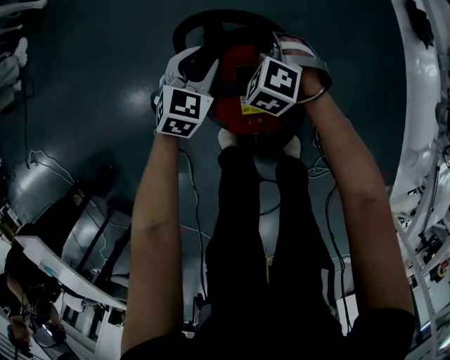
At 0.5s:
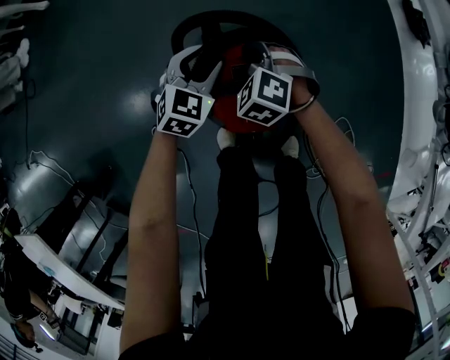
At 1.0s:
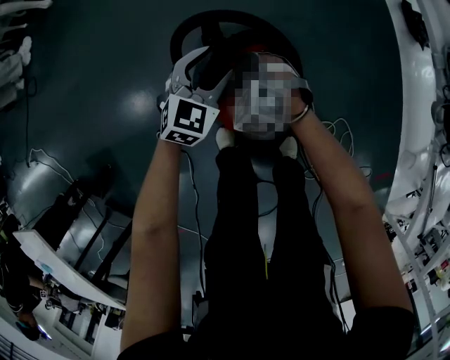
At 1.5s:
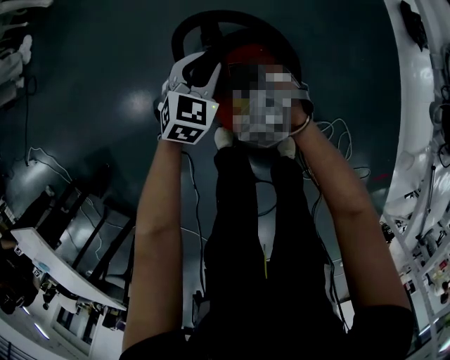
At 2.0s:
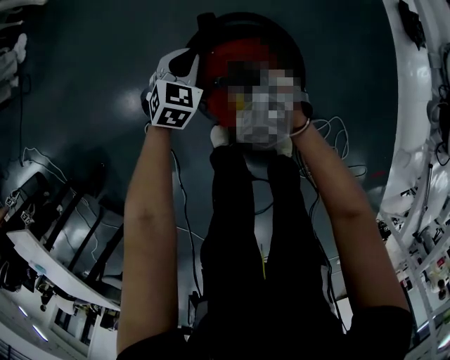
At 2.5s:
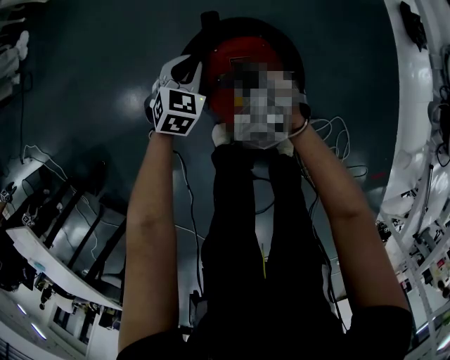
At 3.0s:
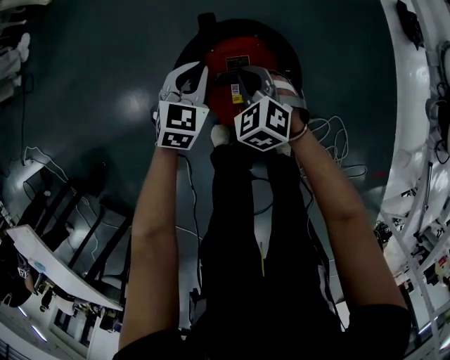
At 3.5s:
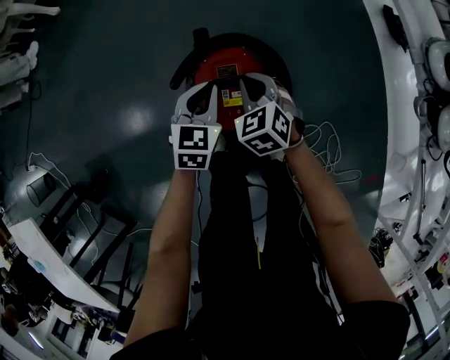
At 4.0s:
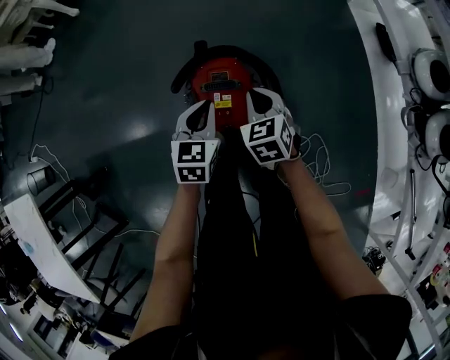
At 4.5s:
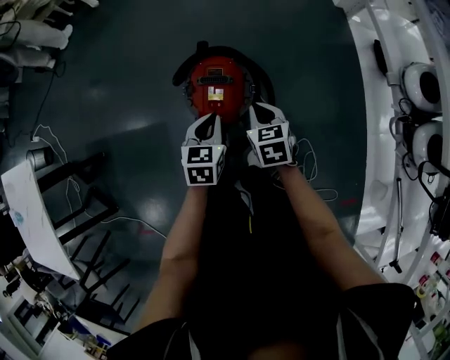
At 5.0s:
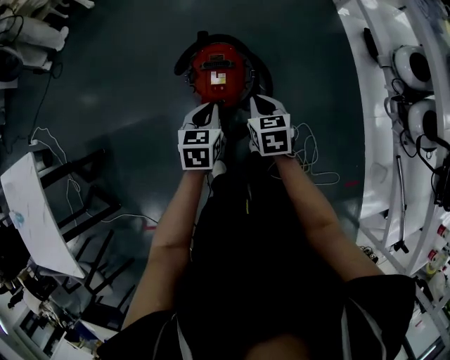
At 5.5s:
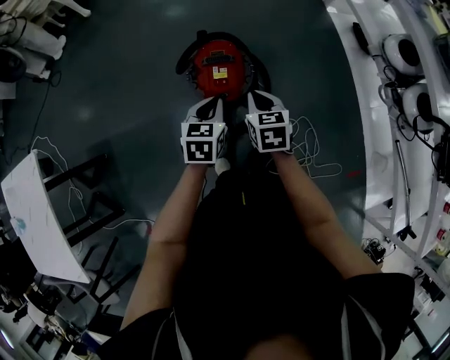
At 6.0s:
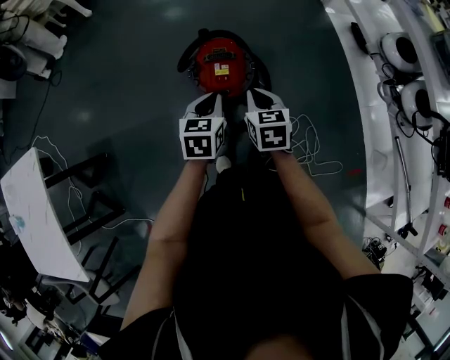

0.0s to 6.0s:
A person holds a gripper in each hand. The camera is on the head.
0.0s to 2.0s: The left gripper closes up; the right gripper goes about 10 cm backward.
2.0s to 4.0s: The right gripper heads upward, to the right and backward, covering approximately 20 cm, and changes its angle by about 30 degrees. The left gripper moves upward, backward and to the right, approximately 25 cm, and rotates some 30 degrees.
4.0s to 6.0s: Both grippers travel together backward and upward, roughly 20 cm. The right gripper swivels some 20 degrees.

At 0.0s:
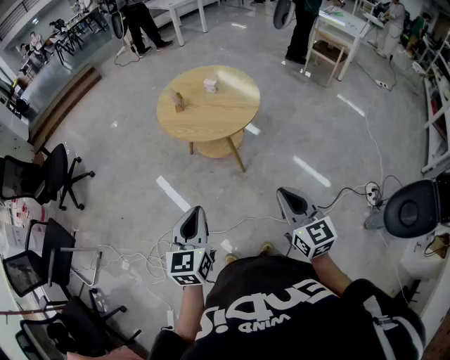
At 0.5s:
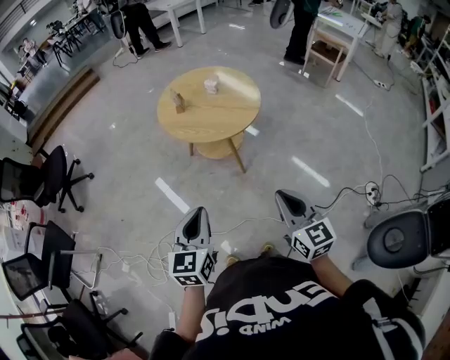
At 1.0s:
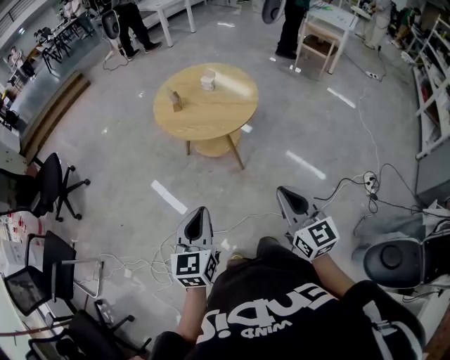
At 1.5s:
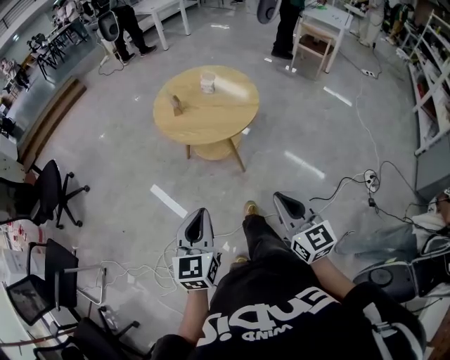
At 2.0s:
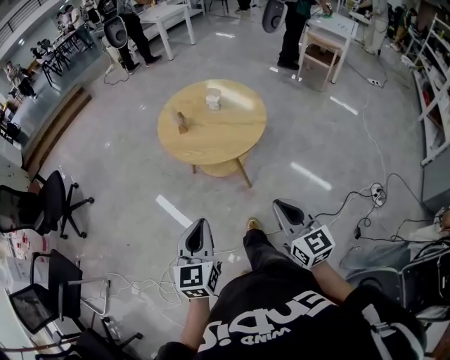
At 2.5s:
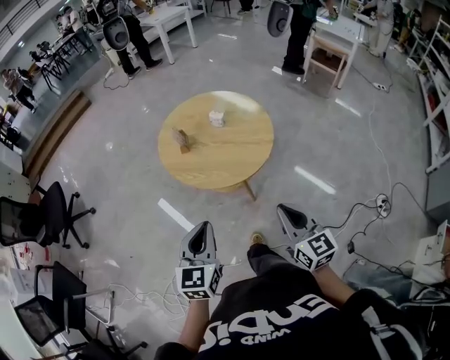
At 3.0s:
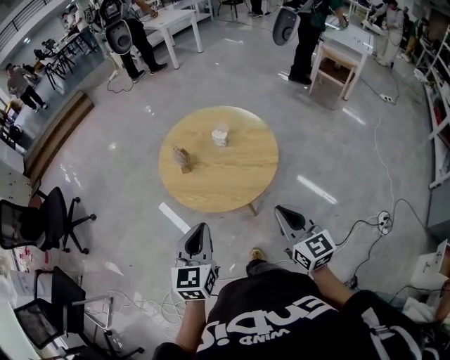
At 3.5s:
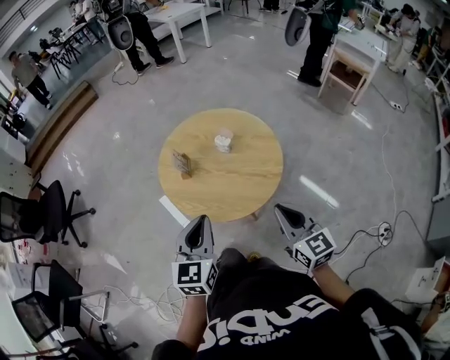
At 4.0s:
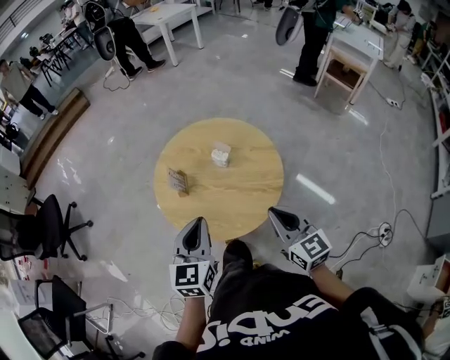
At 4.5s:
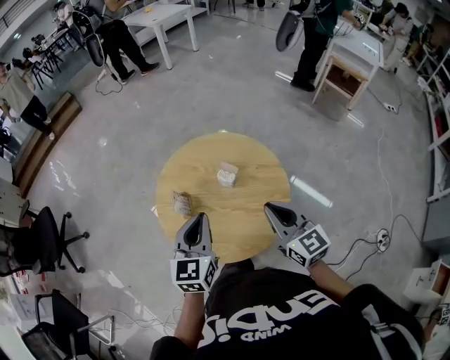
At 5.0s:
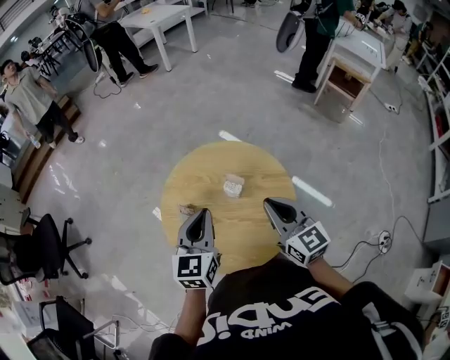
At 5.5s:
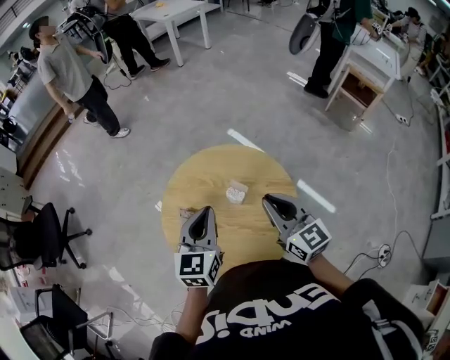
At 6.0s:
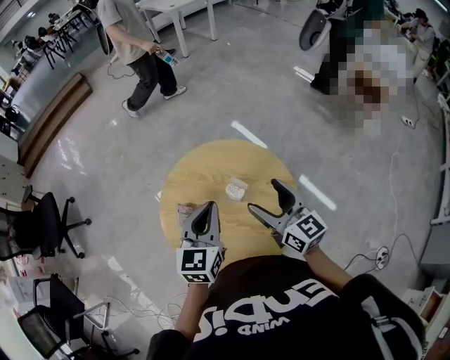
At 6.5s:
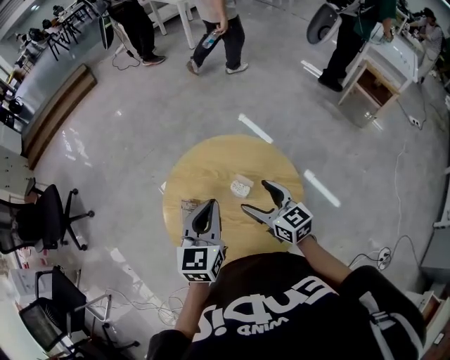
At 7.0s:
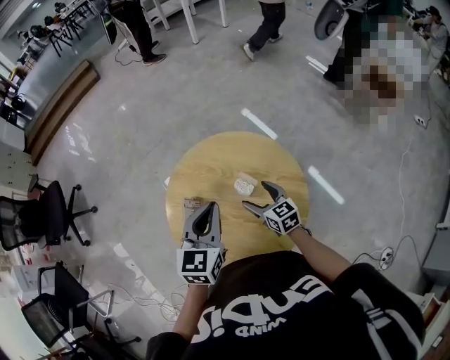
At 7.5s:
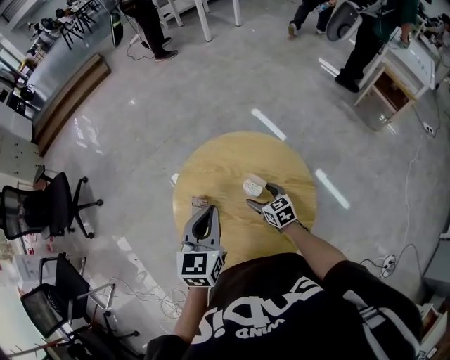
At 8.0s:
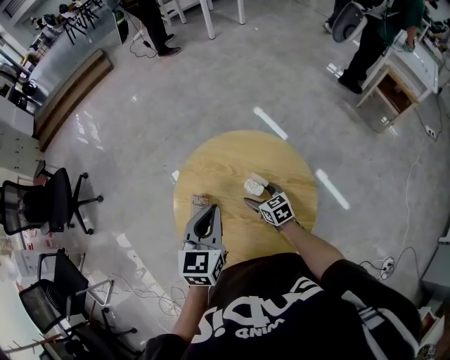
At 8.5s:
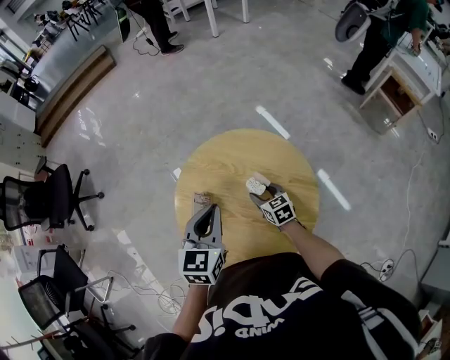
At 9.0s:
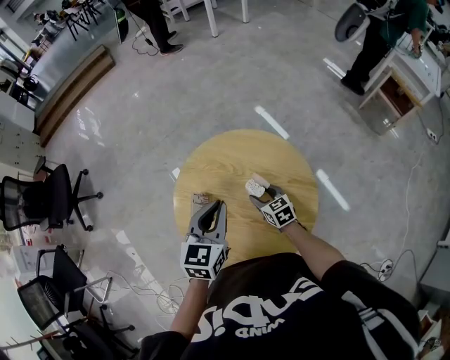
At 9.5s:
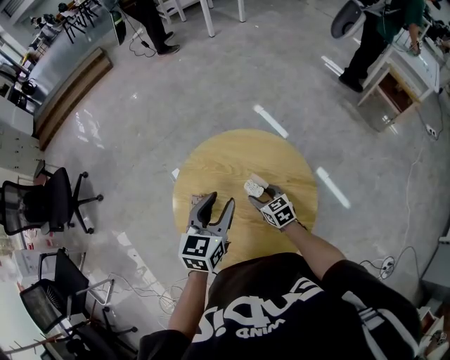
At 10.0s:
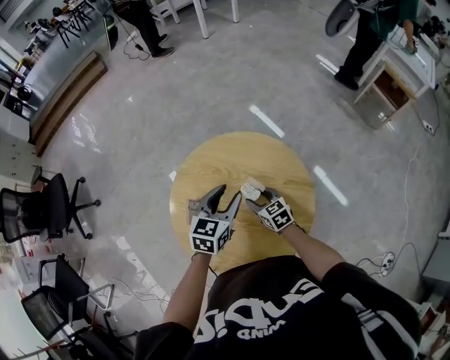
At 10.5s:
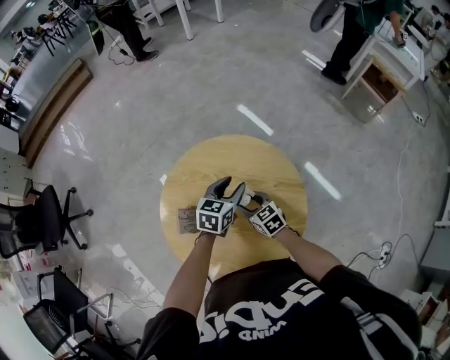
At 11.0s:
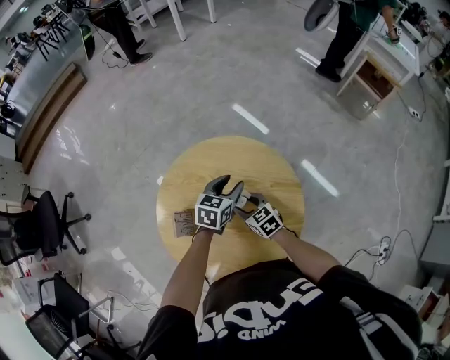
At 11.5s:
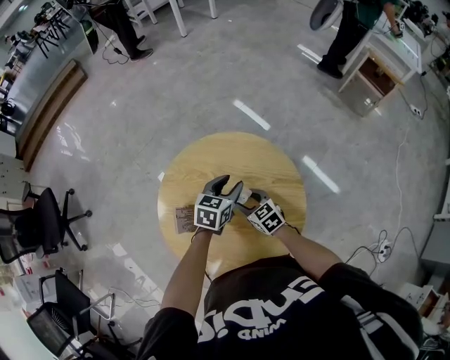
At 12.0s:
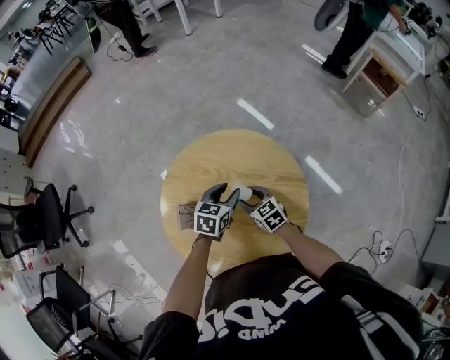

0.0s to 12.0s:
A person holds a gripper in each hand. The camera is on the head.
0.0s to 2.0s: The right gripper shifts roughly 10 cm to the left and forward. The left gripper shifts some 10 cm forward and to the left.
2.0s to 4.0s: Both grippers move forward, approximately 35 cm.
4.0s to 6.0s: Both grippers move forward, roughly 25 cm. The right gripper opens its fingers.
6.0s to 8.0s: The right gripper heads downward, covering some 25 cm, and points its fingers some 30 degrees further downward.
8.0s to 10.0s: The right gripper closes up, while the left gripper shifts approximately 10 cm downward, to the right and forward, and opens.
10.0s to 12.0s: The left gripper heads downward, covering about 10 cm.

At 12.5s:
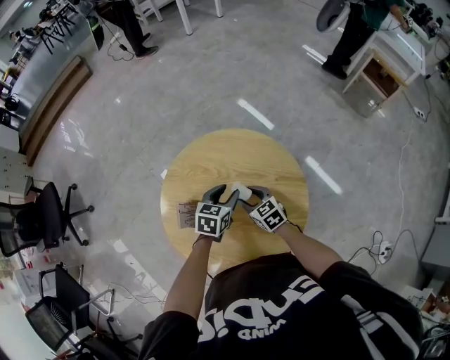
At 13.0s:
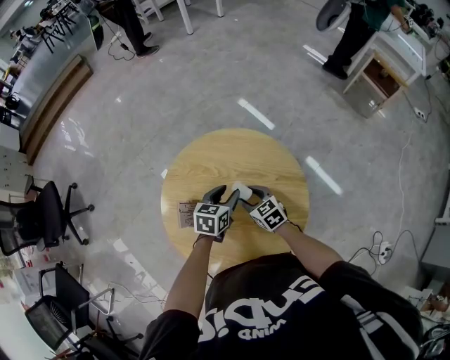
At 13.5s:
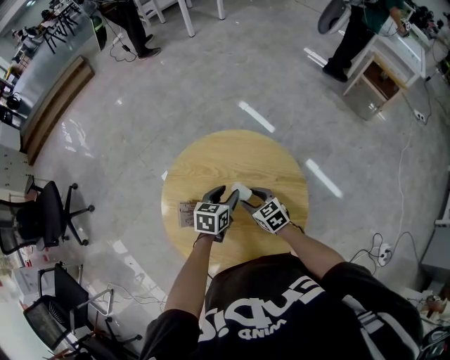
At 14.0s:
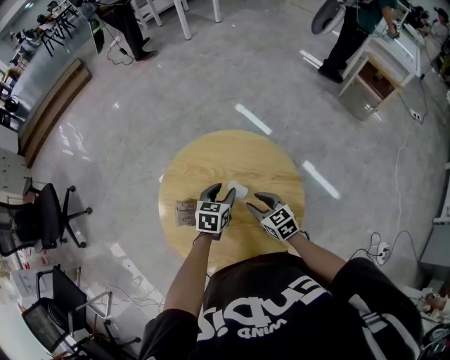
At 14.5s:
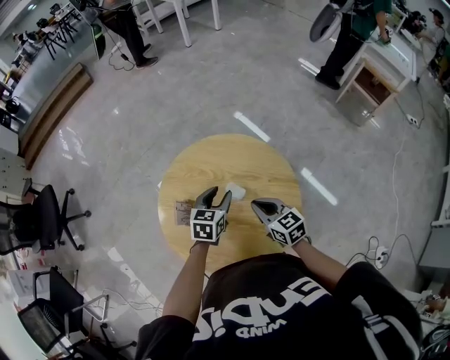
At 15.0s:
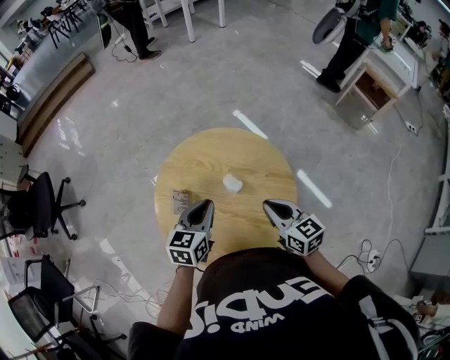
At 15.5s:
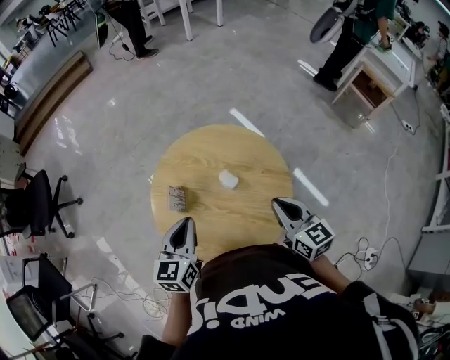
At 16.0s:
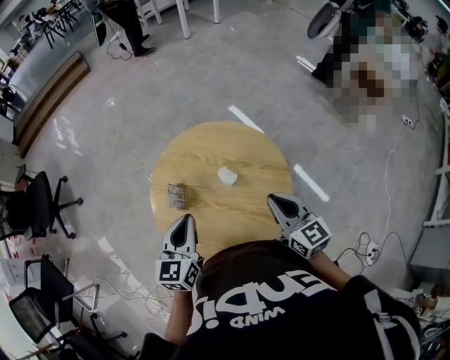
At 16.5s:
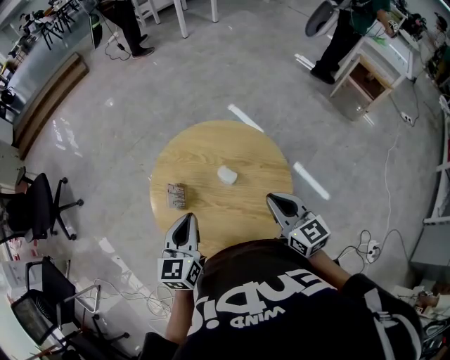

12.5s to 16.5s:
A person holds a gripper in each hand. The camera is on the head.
12.5s to 14.5s: The right gripper travels upward and backward by about 10 cm, and closes its fingers.
14.5s to 16.5s: The left gripper shifts approximately 20 cm backward, upward and to the left, swivels about 20 degrees, and closes; the right gripper heads upward and backward, covering roughly 15 cm.

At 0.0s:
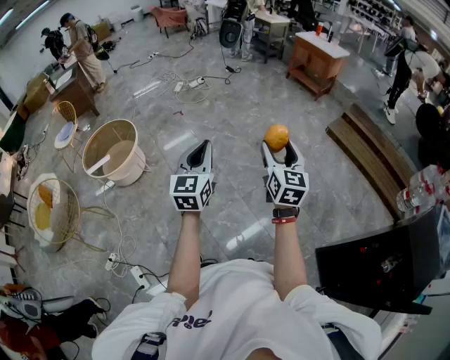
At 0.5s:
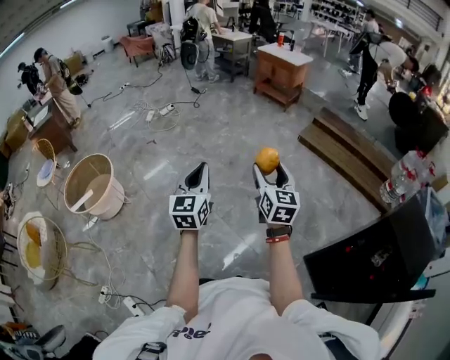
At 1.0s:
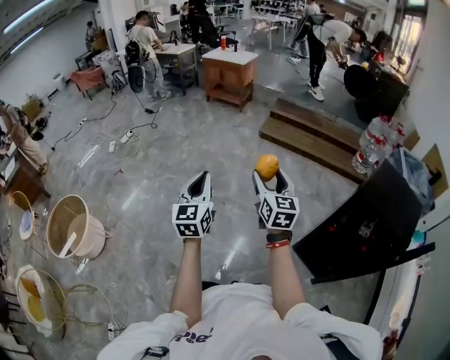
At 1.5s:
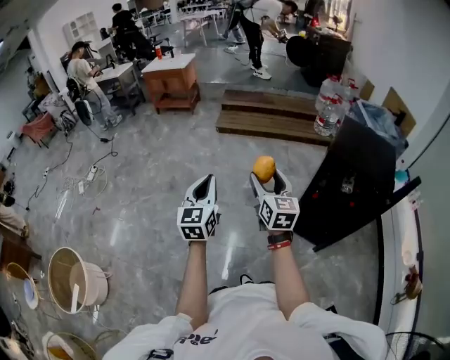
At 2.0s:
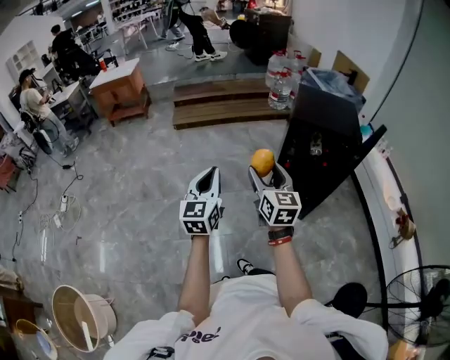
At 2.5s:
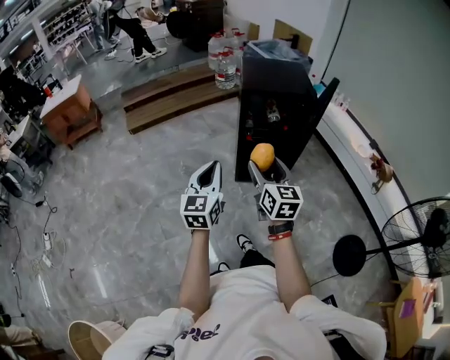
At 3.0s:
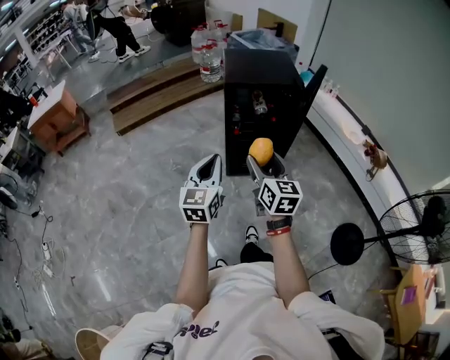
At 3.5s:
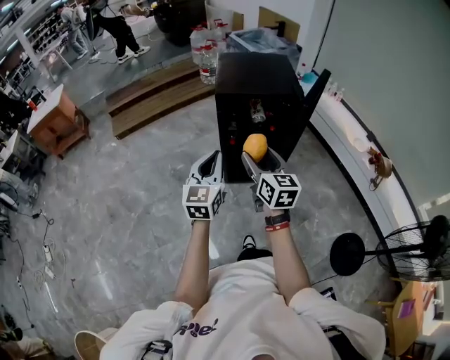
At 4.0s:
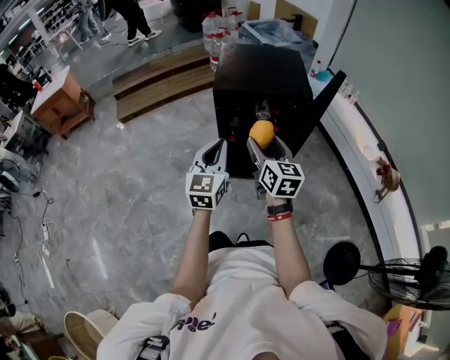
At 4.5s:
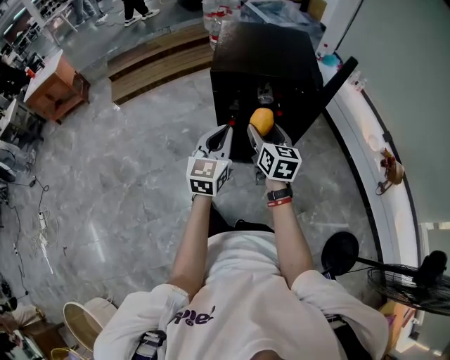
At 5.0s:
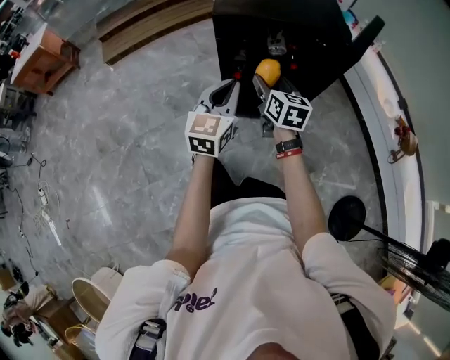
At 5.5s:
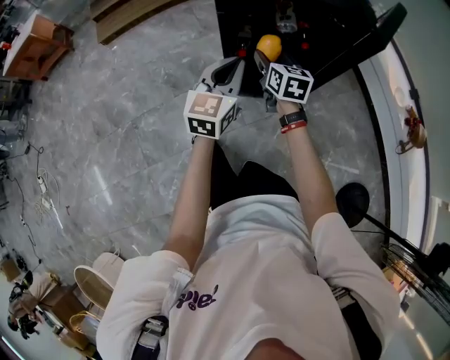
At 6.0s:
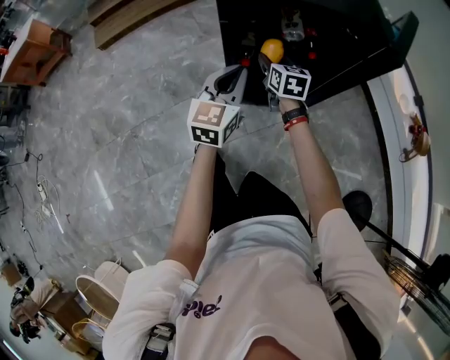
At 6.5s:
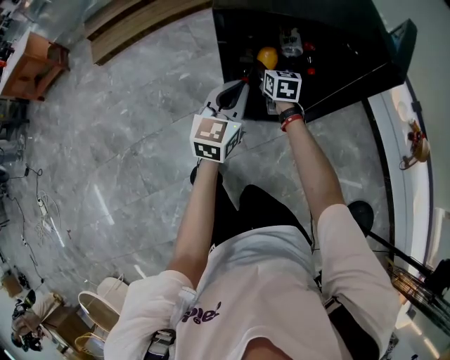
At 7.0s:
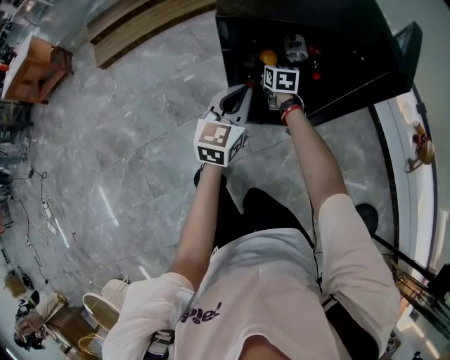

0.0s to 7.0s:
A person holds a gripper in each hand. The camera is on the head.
0.0s to 2.0s: The left gripper ends up approximately 40 cm from where it was, and rotates about 60 degrees, while the right gripper changes place by approximately 40 cm, and swivels roughly 50 degrees.
2.0s to 3.5s: The left gripper shifts approximately 30 cm to the right and forward, and changes its angle by about 20 degrees; the right gripper travels to the right by roughly 25 cm.
3.5s to 5.0s: Both grippers move forward and downward, roughly 30 cm.
5.0s to 7.0s: The right gripper heads forward and downward, covering approximately 35 cm; the left gripper is displaced forward and downward by some 20 cm.
